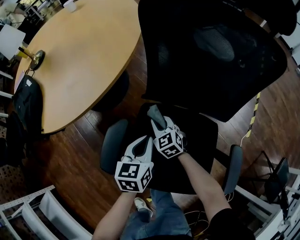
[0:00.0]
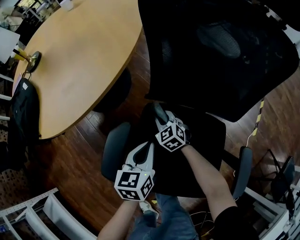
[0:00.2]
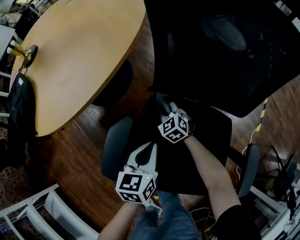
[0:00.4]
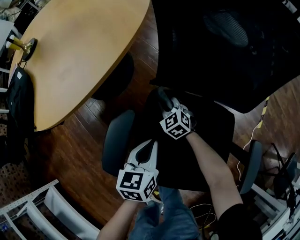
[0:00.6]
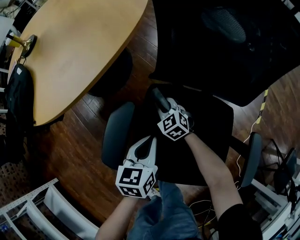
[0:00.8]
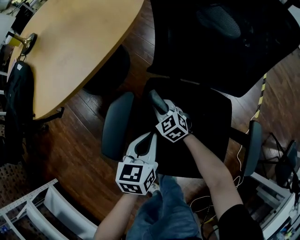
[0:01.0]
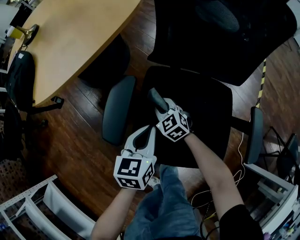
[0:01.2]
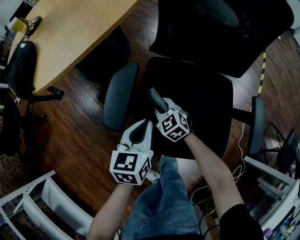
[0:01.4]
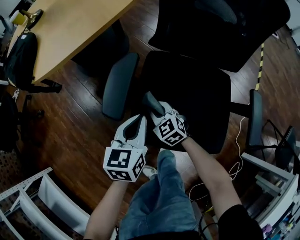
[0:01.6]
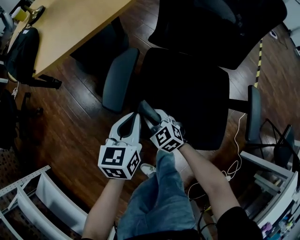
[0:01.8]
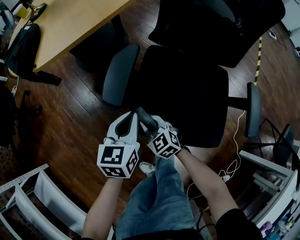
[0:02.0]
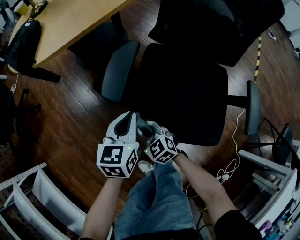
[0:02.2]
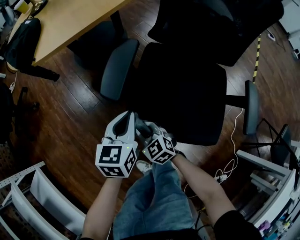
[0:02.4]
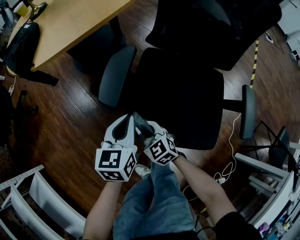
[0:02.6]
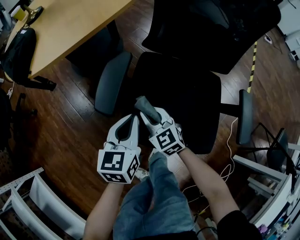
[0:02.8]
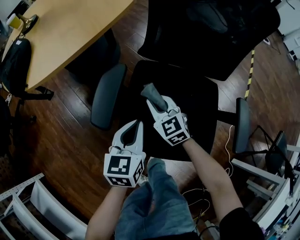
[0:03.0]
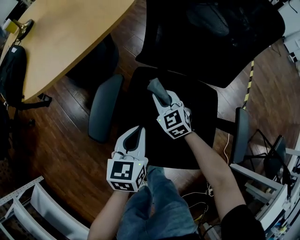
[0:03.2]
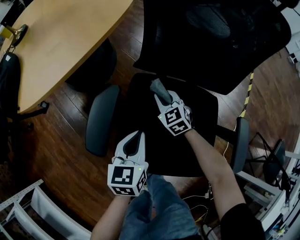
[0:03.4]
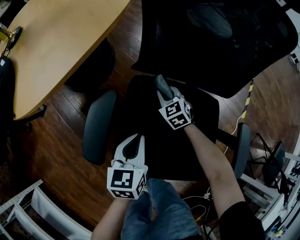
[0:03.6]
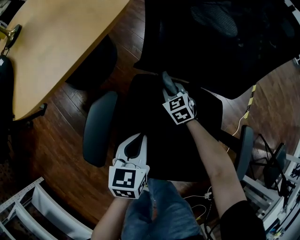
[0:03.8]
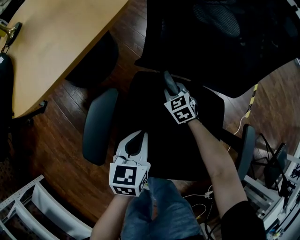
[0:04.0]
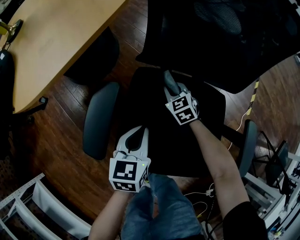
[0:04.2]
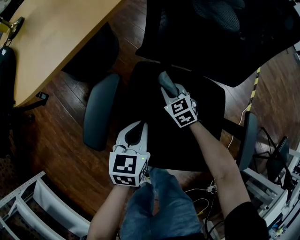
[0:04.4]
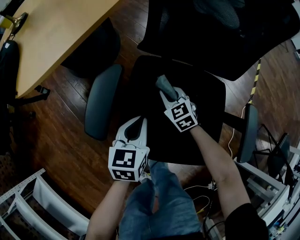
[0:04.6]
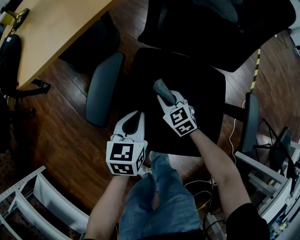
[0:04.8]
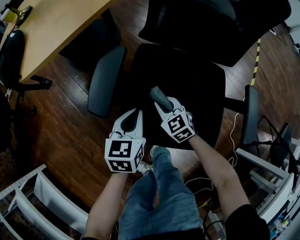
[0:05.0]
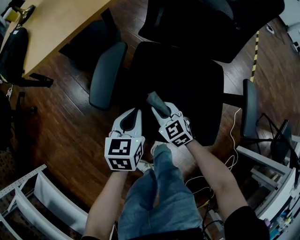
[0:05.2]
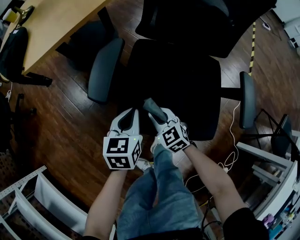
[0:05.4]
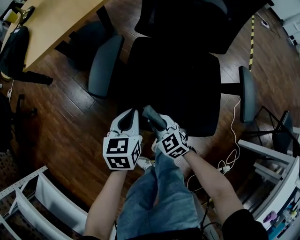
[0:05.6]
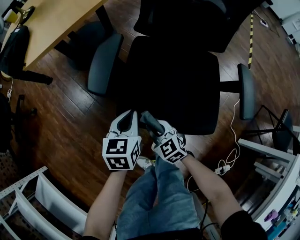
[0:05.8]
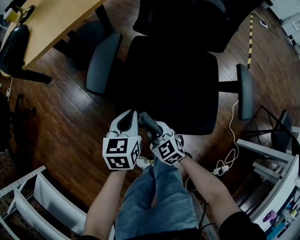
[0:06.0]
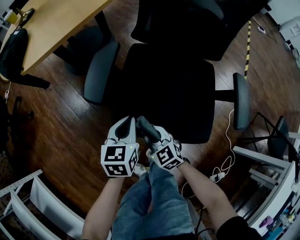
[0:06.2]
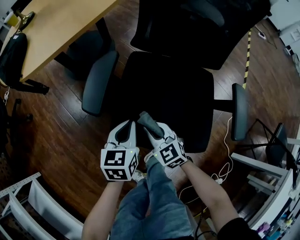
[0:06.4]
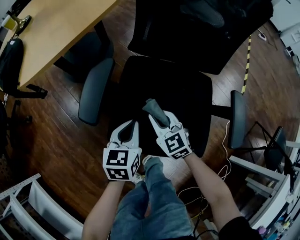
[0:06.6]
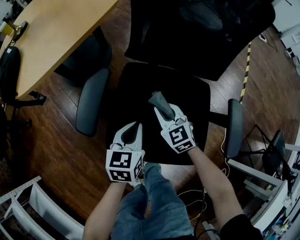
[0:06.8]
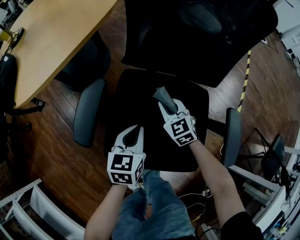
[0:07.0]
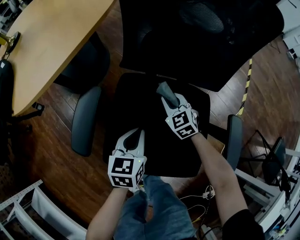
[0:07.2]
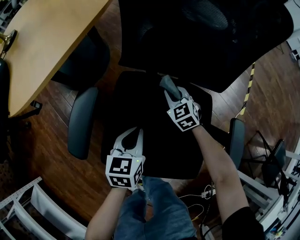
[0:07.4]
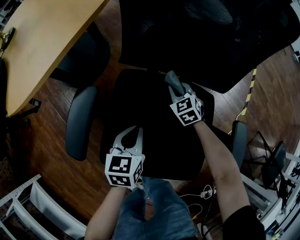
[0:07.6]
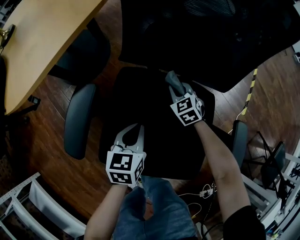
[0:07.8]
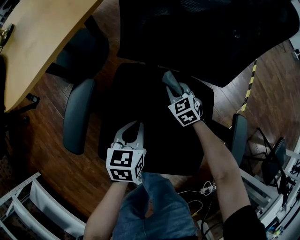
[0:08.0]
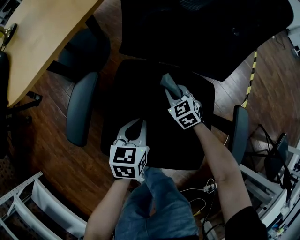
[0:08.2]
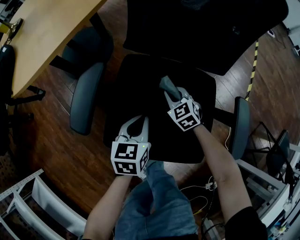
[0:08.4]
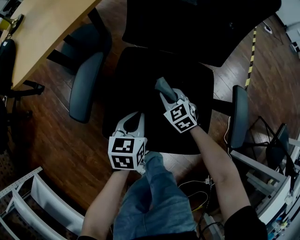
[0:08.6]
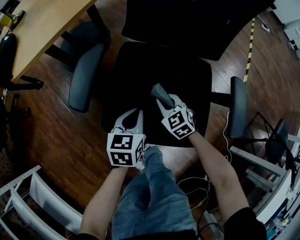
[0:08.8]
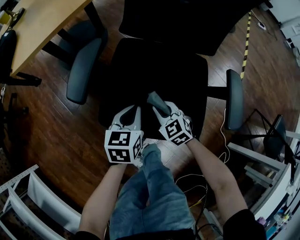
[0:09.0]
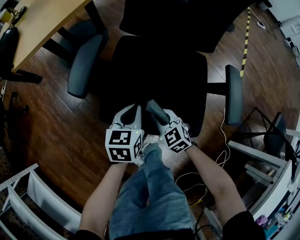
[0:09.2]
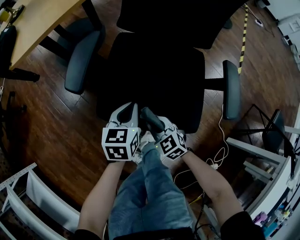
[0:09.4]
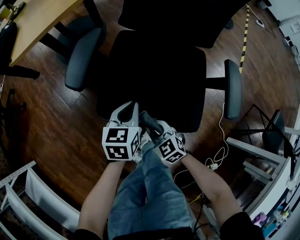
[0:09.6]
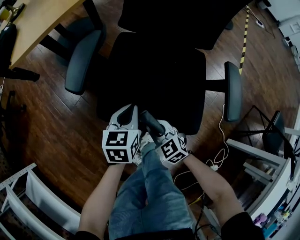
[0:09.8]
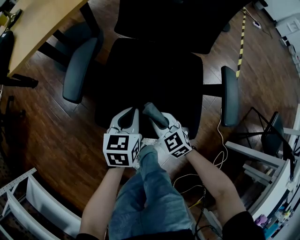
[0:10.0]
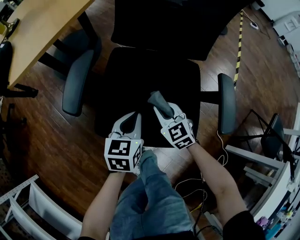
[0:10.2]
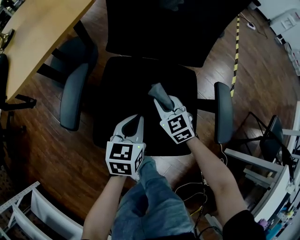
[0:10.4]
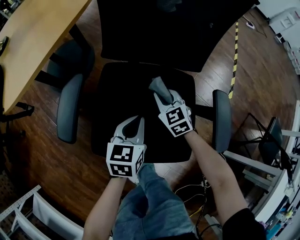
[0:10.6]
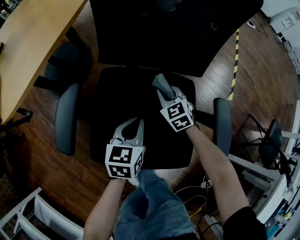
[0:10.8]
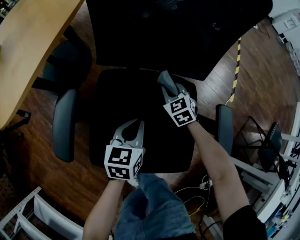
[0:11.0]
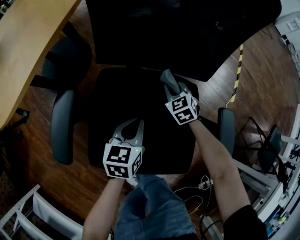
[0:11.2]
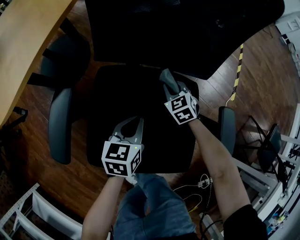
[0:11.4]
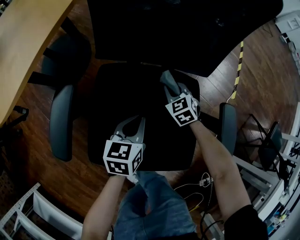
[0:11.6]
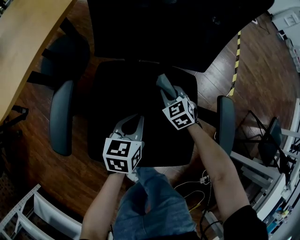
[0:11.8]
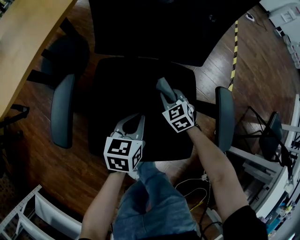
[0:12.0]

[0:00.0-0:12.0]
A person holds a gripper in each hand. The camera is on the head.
0:00.0 to 0:01.6: The two grippers go roughly 20 cm backward and to the left.
0:01.6 to 0:03.0: The right gripper shifts some 10 cm upward and to the right, and reaches approximately 10 cm backward, then returns.
0:03.0 to 0:04.4: The right gripper shifts about 15 cm downward, forward and to the right. Meanwhile the left gripper shifts some 10 cm downward and forward.
0:04.4 to 0:06.0: The right gripper heads backward and to the left, covering some 35 cm, while the left gripper goes about 15 cm backward and to the left.
0:06.0 to 0:07.6: The left gripper moves forward and to the right, approximately 20 cm. The right gripper shifts roughly 40 cm forward and to the right.
0:07.6 to 0:09.0: The left gripper heads backward, covering approximately 10 cm. The right gripper moves backward, roughly 30 cm.
0:09.0 to 0:10.4: The left gripper goes approximately 5 cm to the right, while the right gripper travels forward, to the right and upward by approximately 15 cm.
0:10.4 to 0:12.0: The right gripper shifts approximately 10 cm downward, forward and to the right.

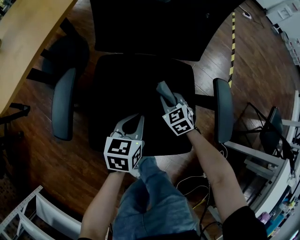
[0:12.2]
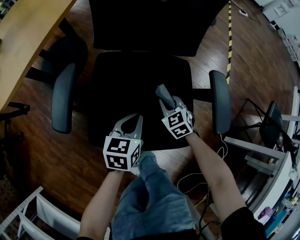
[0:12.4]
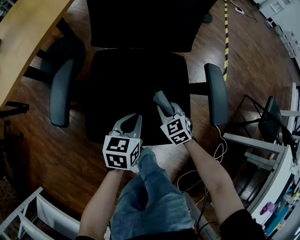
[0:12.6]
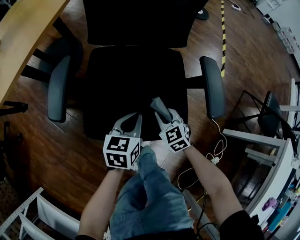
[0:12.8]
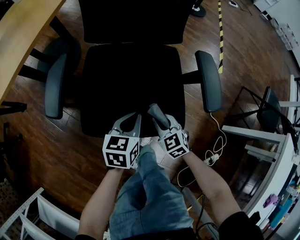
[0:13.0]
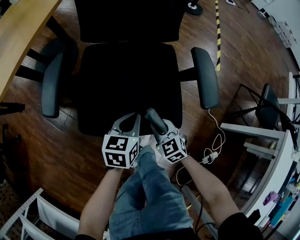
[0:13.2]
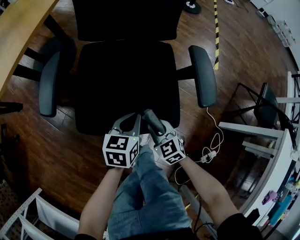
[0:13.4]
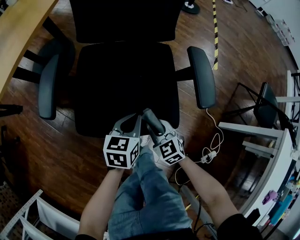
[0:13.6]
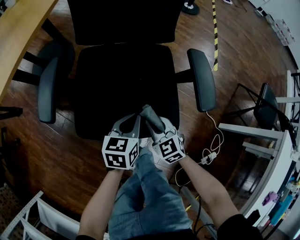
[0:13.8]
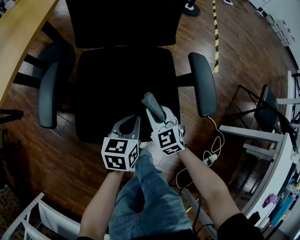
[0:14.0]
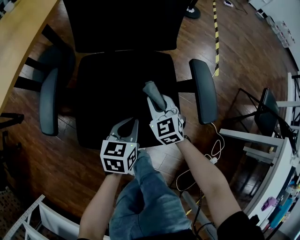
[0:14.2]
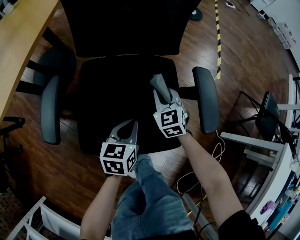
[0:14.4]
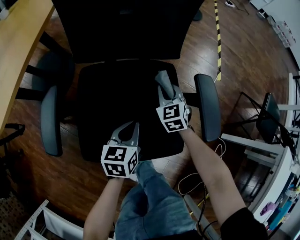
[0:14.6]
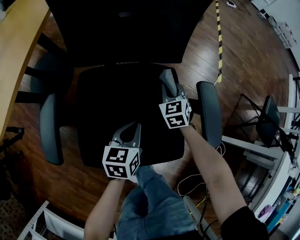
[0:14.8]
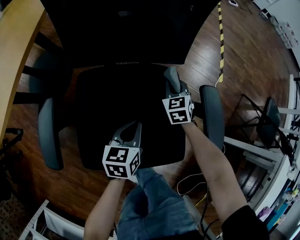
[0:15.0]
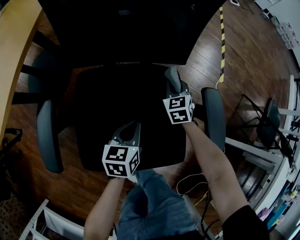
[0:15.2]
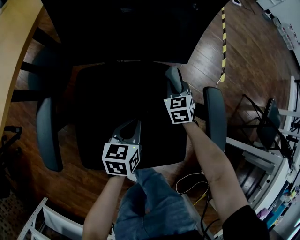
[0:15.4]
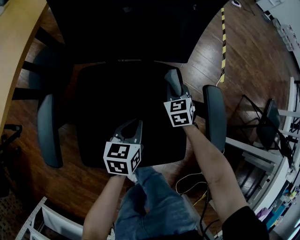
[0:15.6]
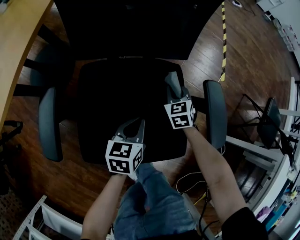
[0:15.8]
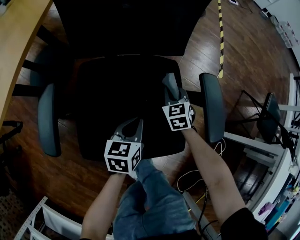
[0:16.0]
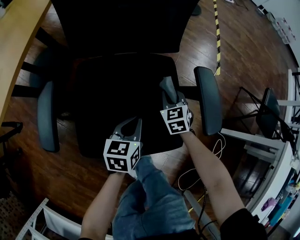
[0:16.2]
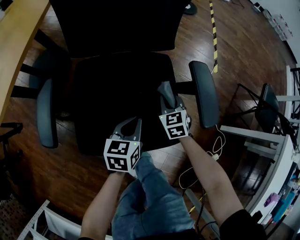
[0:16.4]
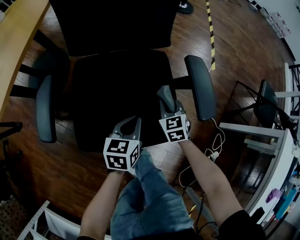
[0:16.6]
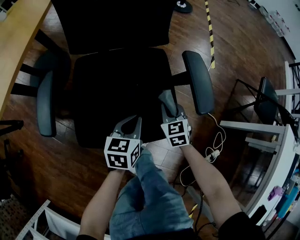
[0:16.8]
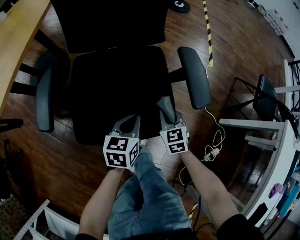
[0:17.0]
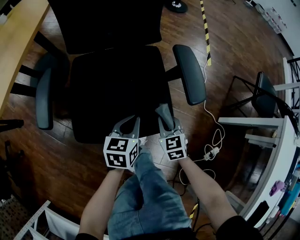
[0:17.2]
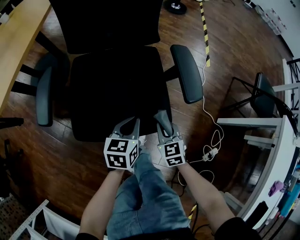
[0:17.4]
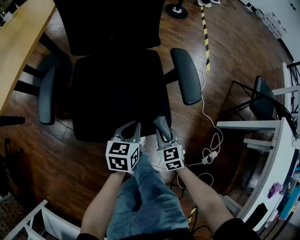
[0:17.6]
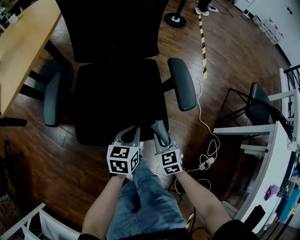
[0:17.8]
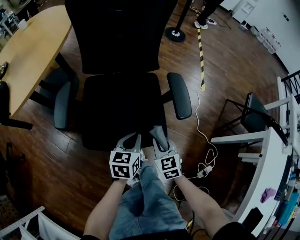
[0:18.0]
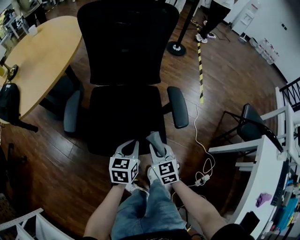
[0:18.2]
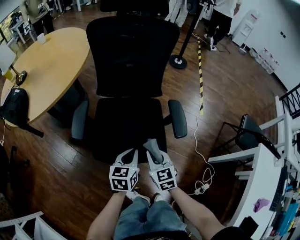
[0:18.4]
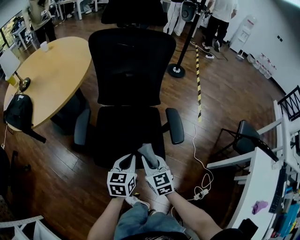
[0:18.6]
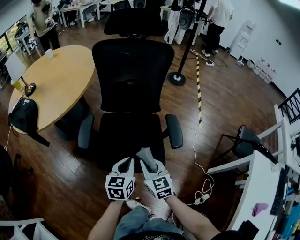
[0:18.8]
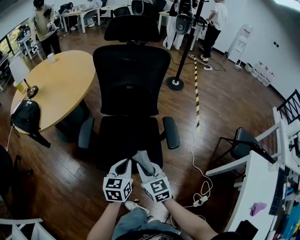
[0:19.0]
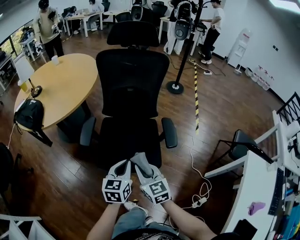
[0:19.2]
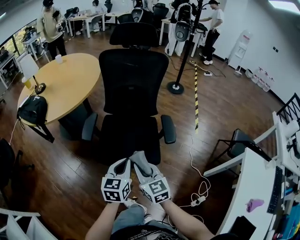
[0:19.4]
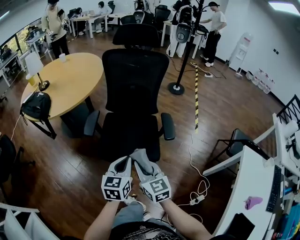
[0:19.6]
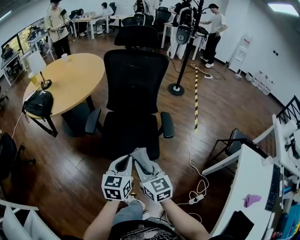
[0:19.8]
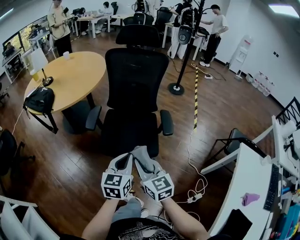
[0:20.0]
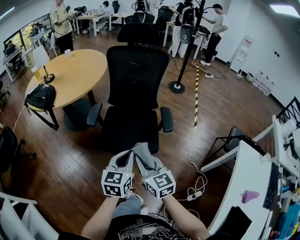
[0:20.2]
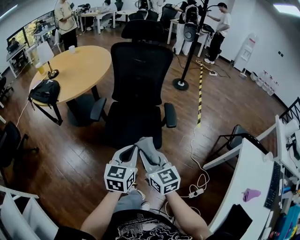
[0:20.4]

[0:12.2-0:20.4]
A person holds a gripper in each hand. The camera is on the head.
0:12.2 to 0:13.8: The right gripper goes approximately 20 cm backward. Meanwhile the left gripper shifts about 10 cm backward and to the right.
0:13.8 to 0:15.4: The right gripper moves forward, about 30 cm, and turns by about 20 degrees; the left gripper goes about 15 cm forward.
0:15.4 to 0:17.2: The right gripper shifts some 30 cm backward, while the left gripper shifts about 15 cm backward and to the right.
0:17.2 to 0:18.8: The grippers both shift upward by some 25 cm. The right gripper rotates roughly 20 degrees.
0:18.8 to 0:20.4: The grippers both shift backward and upward by approximately 25 cm.

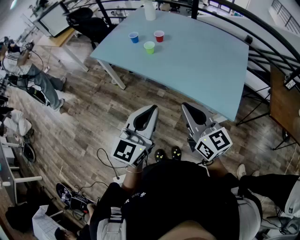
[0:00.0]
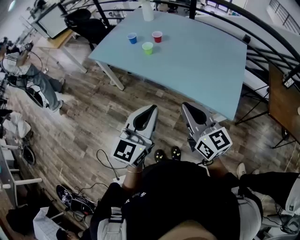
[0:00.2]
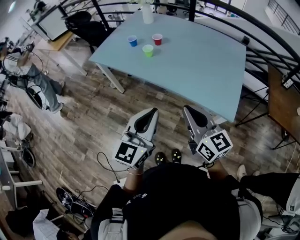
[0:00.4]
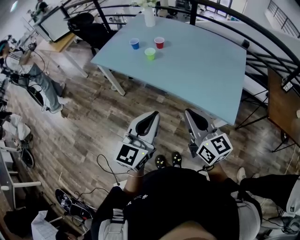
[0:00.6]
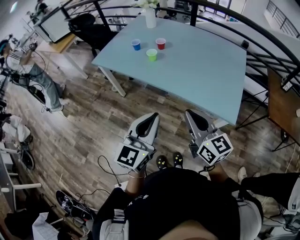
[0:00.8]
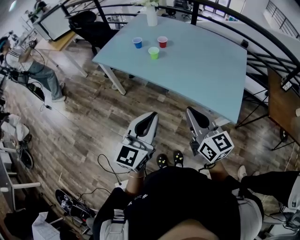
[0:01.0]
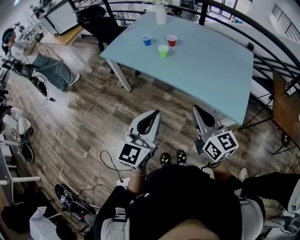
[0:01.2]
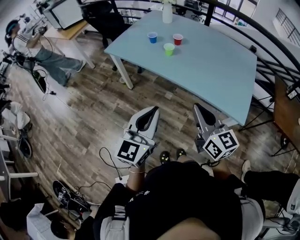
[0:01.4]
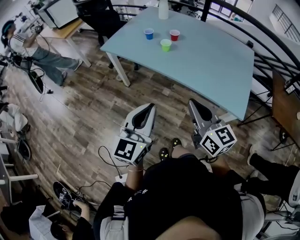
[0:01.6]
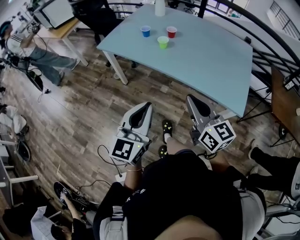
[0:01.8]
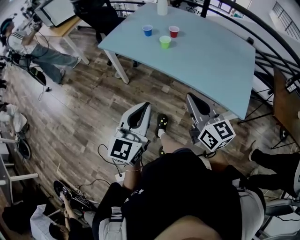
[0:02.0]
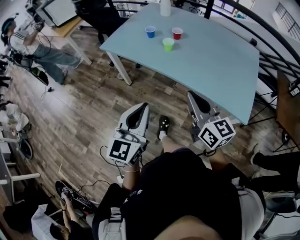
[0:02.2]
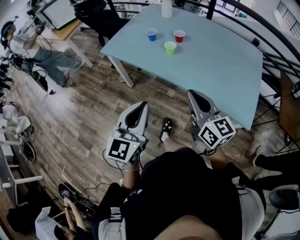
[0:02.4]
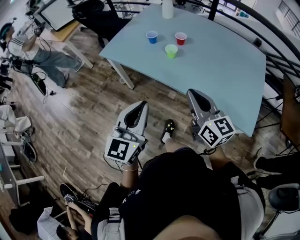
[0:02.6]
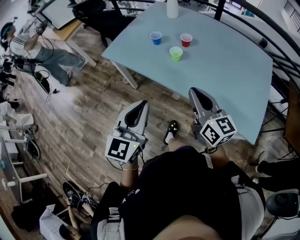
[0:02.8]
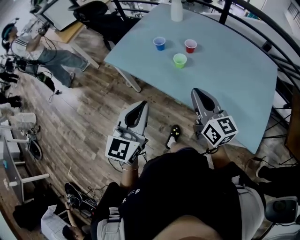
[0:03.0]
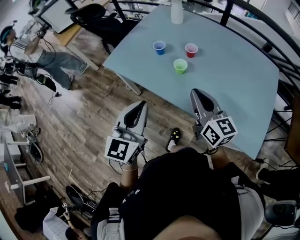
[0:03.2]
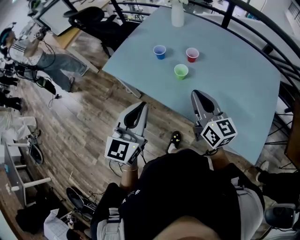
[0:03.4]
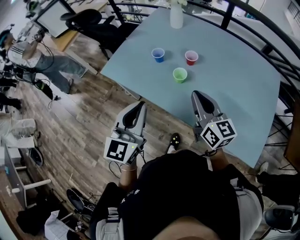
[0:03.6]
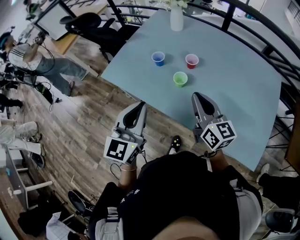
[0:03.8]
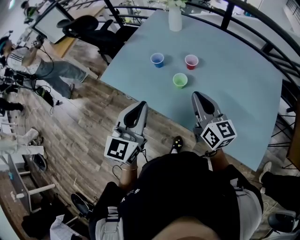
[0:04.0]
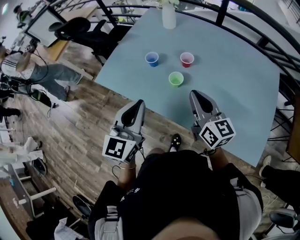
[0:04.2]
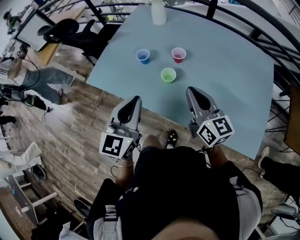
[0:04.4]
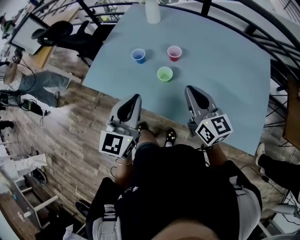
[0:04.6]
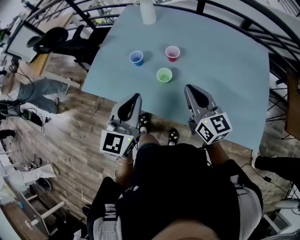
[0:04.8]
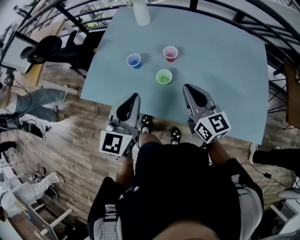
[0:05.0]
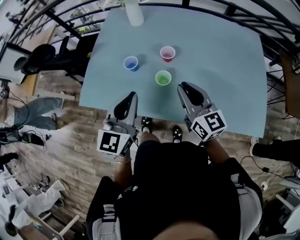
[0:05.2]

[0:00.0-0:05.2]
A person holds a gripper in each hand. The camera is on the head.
0:00.0 to 0:01.8: Both grippers move to the left, approximately 10 cm.
0:01.8 to 0:03.4: Both grippers travel together forward, some 35 cm.
0:03.4 to 0:05.2: The right gripper moves forward, roughly 10 cm. Meanwhile the left gripper is displaced forward by approximately 20 cm.
